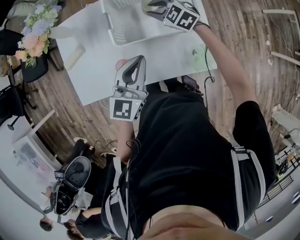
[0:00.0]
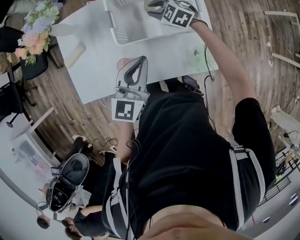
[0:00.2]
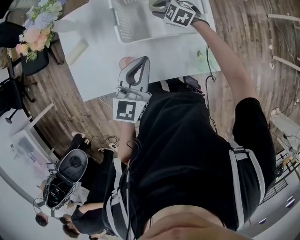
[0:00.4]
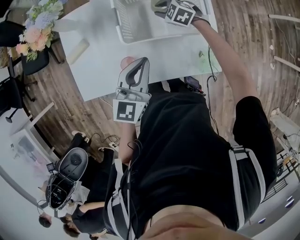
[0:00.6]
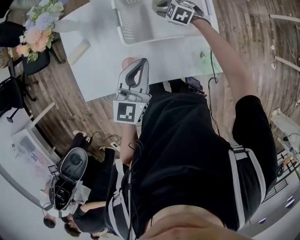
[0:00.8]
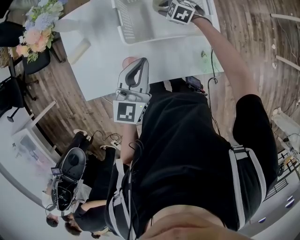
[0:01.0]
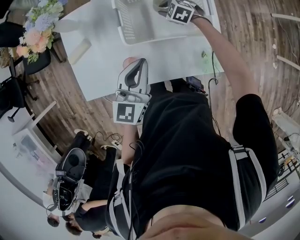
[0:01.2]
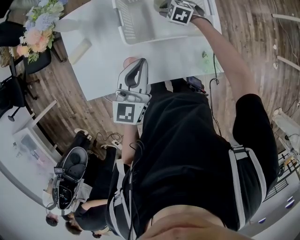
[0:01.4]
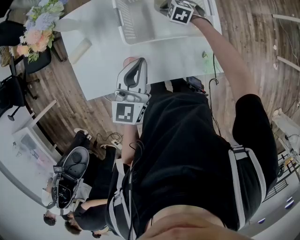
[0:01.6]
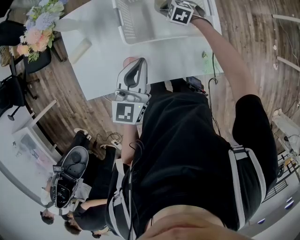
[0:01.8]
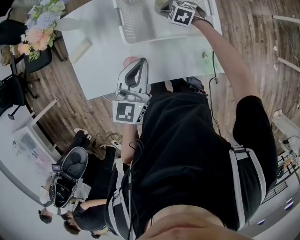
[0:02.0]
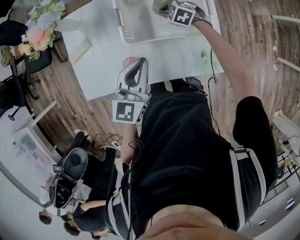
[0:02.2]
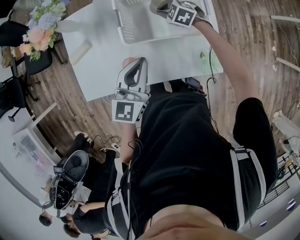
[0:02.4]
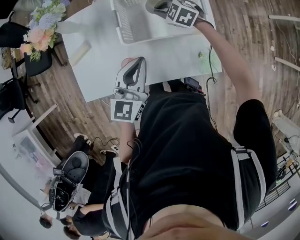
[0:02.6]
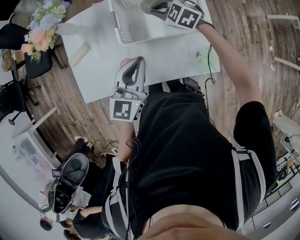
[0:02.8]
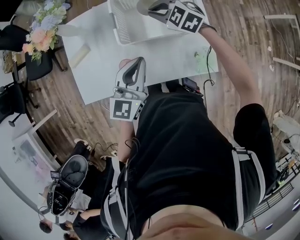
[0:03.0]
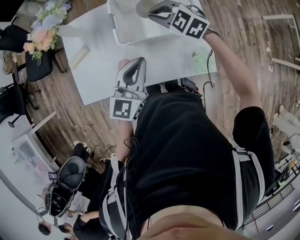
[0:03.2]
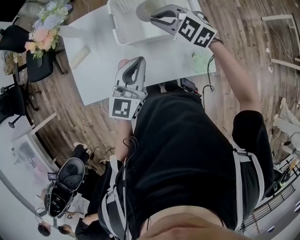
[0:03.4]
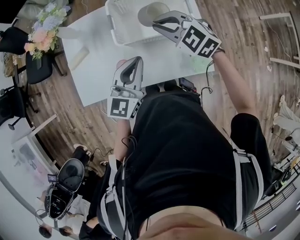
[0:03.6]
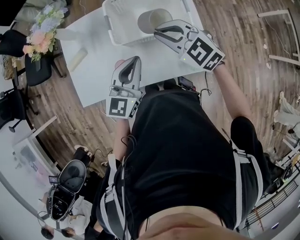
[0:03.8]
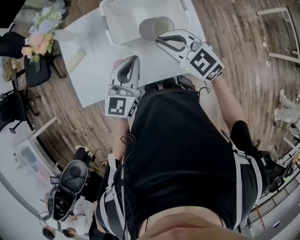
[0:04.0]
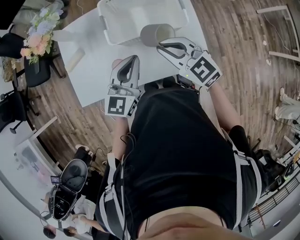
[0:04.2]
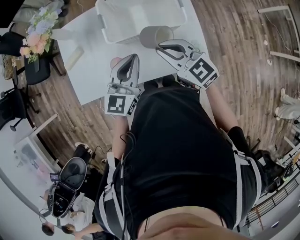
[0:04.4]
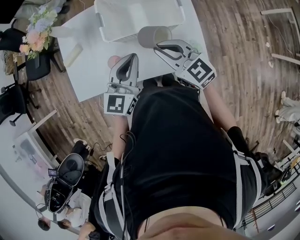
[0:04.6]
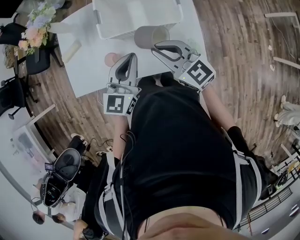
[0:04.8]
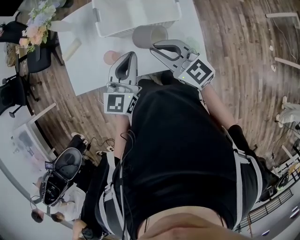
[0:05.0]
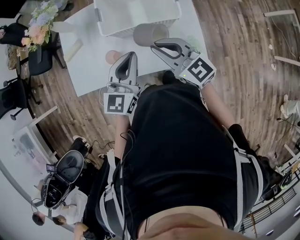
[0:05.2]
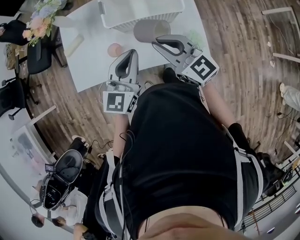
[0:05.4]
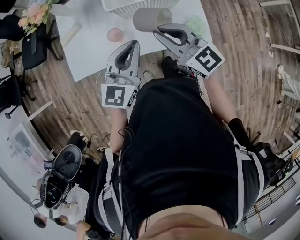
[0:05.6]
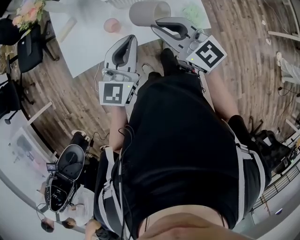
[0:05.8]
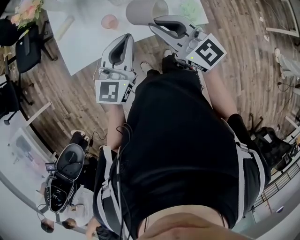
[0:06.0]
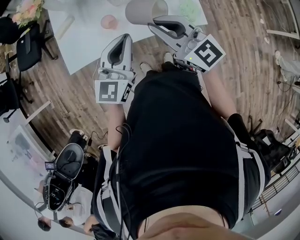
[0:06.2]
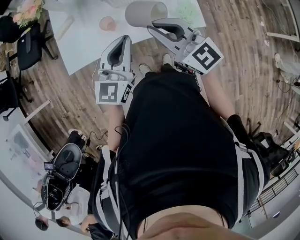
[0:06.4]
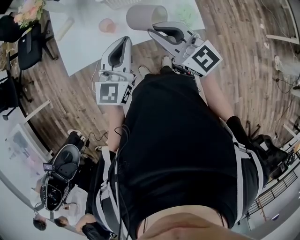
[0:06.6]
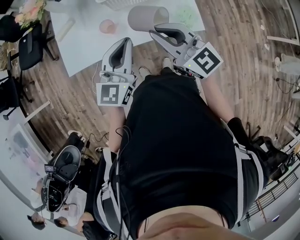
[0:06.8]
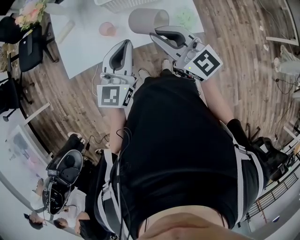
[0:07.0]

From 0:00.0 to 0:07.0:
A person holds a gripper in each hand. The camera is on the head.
From 0:00.0 to 0:01.4: The right gripper heads downward, covering about 15 cm.
From 0:01.4 to 0:02.8: The right gripper travels upward by some 15 cm.
From 0:02.8 to 0:04.2: The right gripper moves backward and upward, some 25 cm, and turns by about 30 degrees.
From 0:04.2 to 0:05.6: The two grippers go some 10 cm backward.
From 0:05.6 to 0:07.0: The grippers both shift backward by about 5 cm.

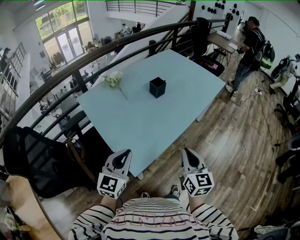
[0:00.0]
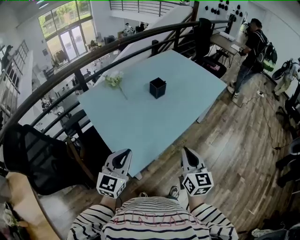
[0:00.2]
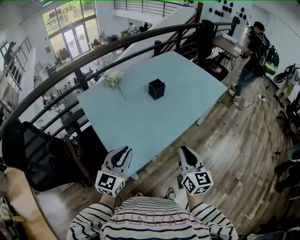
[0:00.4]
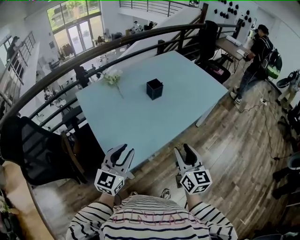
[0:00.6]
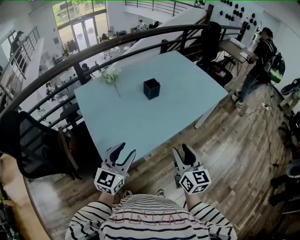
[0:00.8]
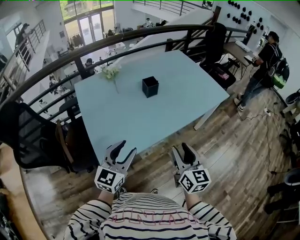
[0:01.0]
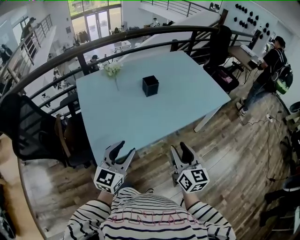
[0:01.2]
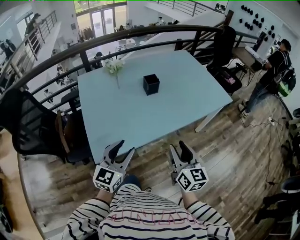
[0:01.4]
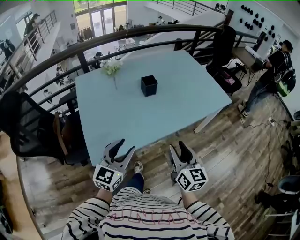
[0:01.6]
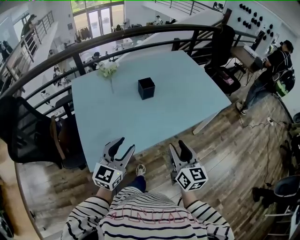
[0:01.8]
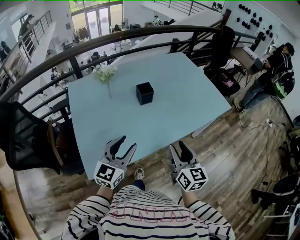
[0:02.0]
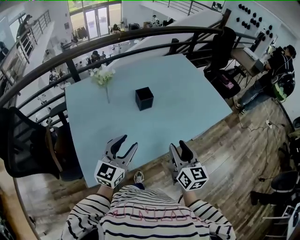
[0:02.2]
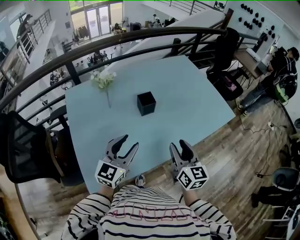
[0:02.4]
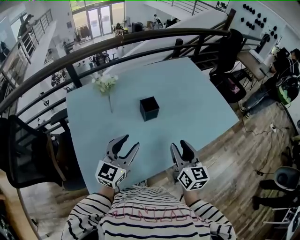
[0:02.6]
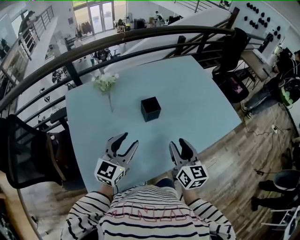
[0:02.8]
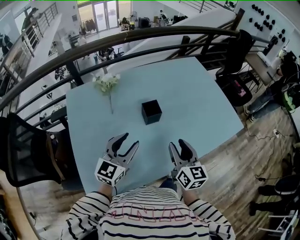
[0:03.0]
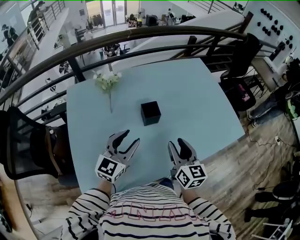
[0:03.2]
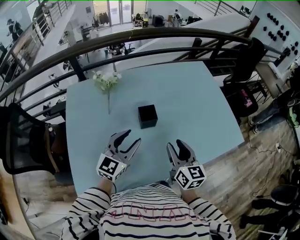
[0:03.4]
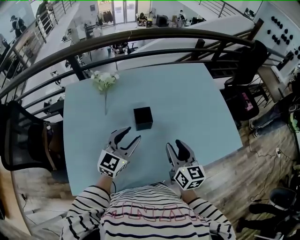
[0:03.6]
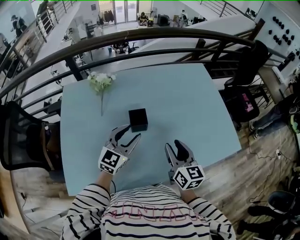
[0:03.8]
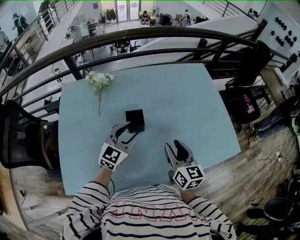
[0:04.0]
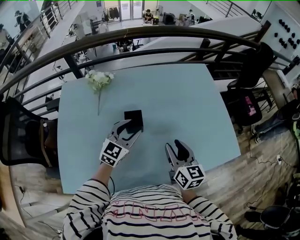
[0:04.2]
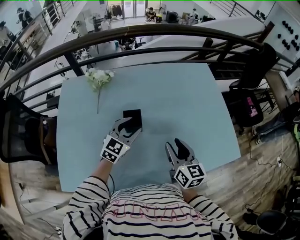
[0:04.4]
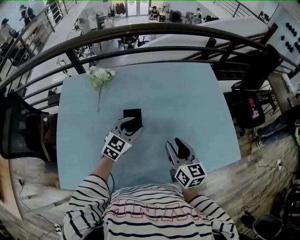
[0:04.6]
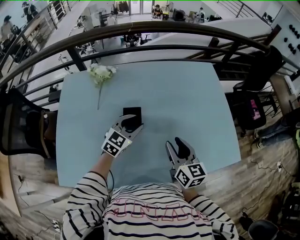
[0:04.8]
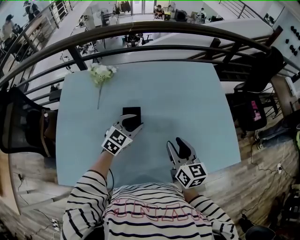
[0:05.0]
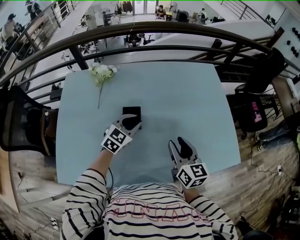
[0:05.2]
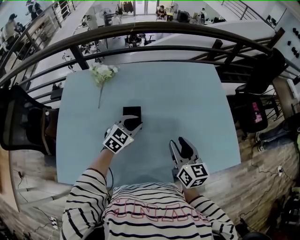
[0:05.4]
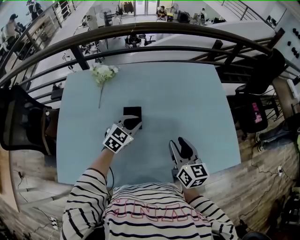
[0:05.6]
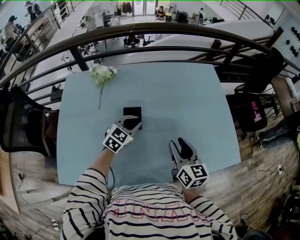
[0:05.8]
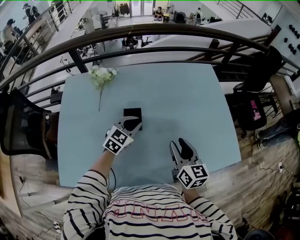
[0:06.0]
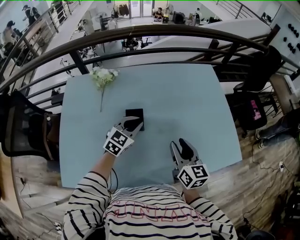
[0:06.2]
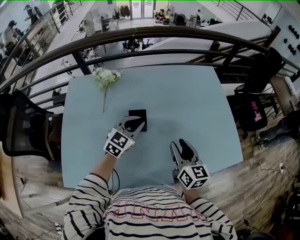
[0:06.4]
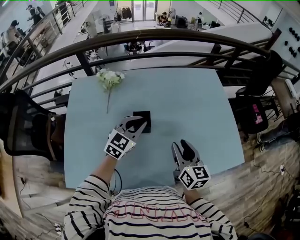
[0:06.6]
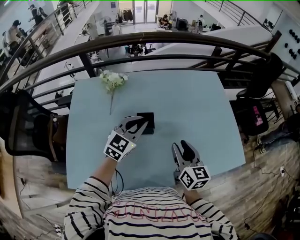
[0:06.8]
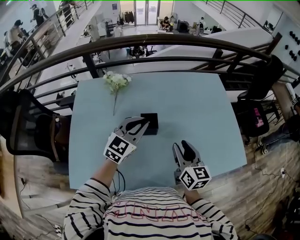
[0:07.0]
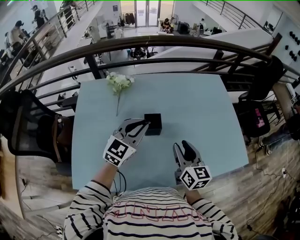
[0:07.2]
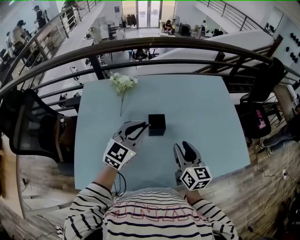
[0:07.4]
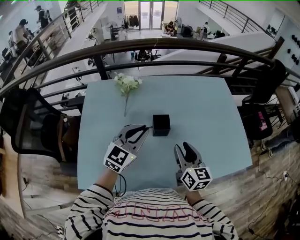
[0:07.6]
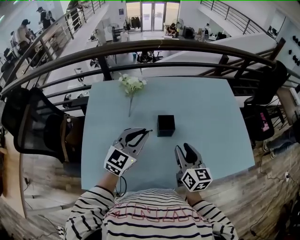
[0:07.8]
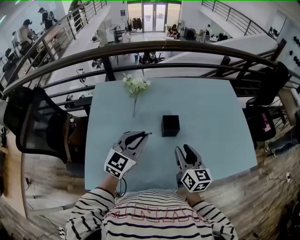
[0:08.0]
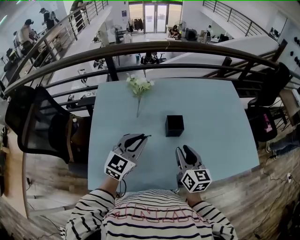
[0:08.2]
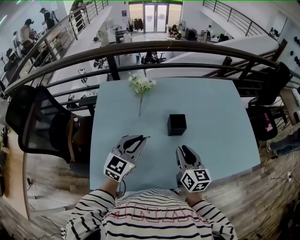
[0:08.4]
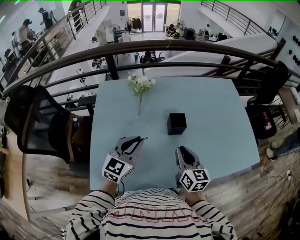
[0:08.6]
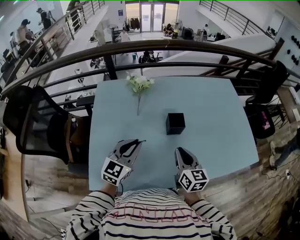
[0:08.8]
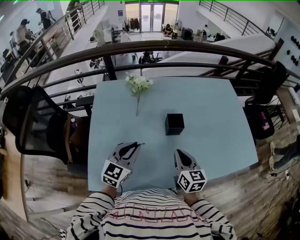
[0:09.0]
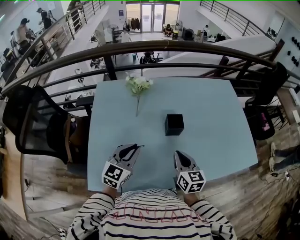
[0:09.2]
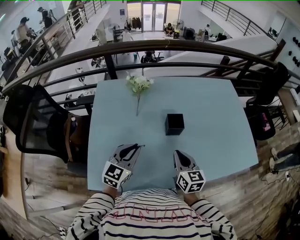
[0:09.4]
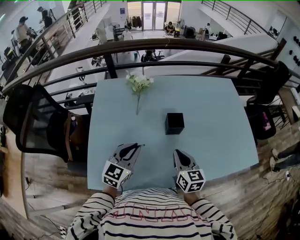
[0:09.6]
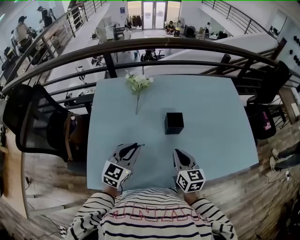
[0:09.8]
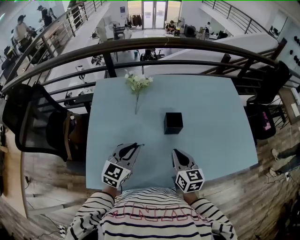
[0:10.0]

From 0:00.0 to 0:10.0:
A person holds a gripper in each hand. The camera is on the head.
From 0:00.0 to 0:01.4: The left gripper shifts approximately 20 cm to the right, and opens. Meanwhile the right gripper moves to the right and forward, approximately 20 cm, changes its angle by some 20 degrees, and opens.
From 0:01.4 to 0:02.8: Both grippers move forward, roughly 30 cm.
From 0:02.8 to 0:04.2: Both grippers travel together forward and to the right, some 20 cm.
From 0:04.2 to 0:05.8: The left gripper goes roughly 5 cm downward, and closes up.
From 0:05.8 to 0:07.2: The left gripper moves upward, to the left and backward, approximately 15 cm, while the right gripper travels to the left by roughly 10 cm.
From 0:07.2 to 0:08.6: The grippers both shift to the left and backward by approximately 15 cm. The right gripper closes up.
From 0:08.6 to 0:10.0: The grippers stay close to where they were, moving slightly.

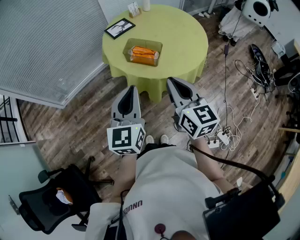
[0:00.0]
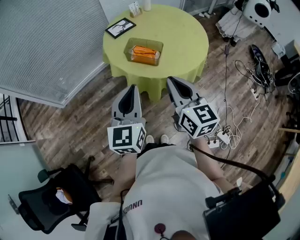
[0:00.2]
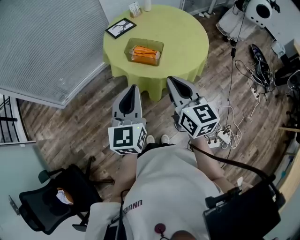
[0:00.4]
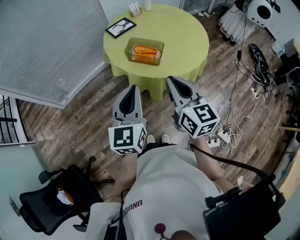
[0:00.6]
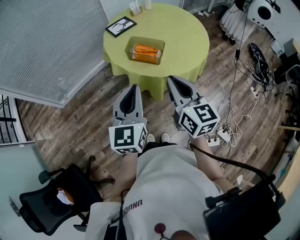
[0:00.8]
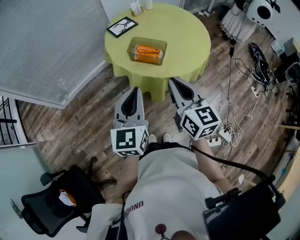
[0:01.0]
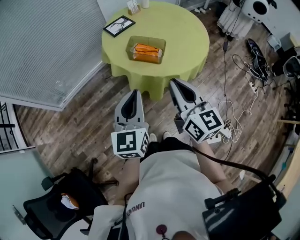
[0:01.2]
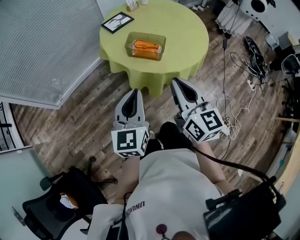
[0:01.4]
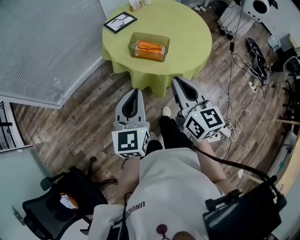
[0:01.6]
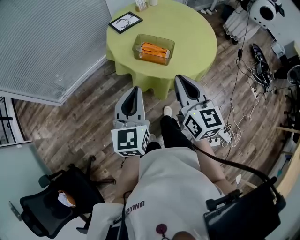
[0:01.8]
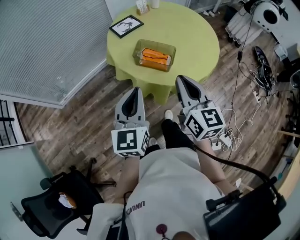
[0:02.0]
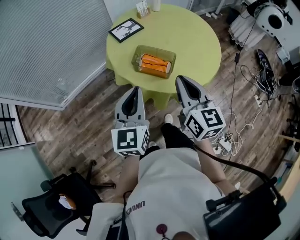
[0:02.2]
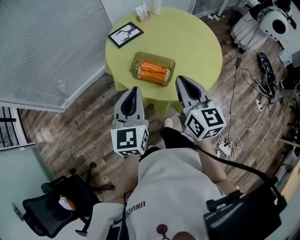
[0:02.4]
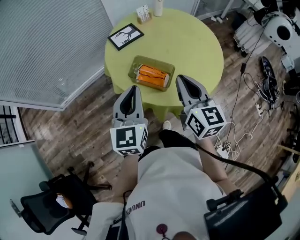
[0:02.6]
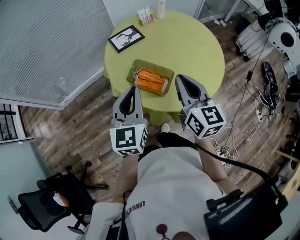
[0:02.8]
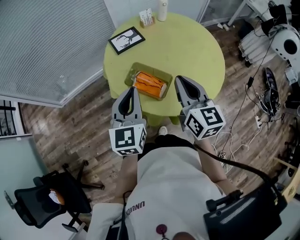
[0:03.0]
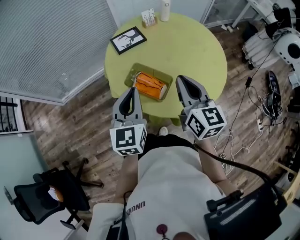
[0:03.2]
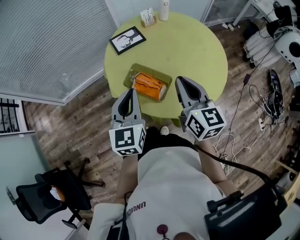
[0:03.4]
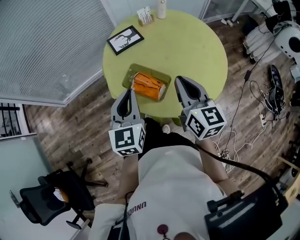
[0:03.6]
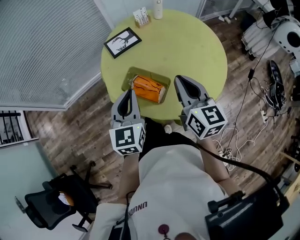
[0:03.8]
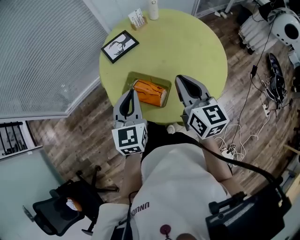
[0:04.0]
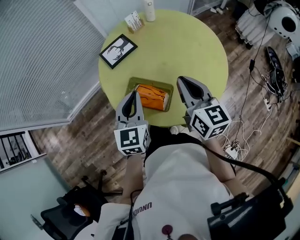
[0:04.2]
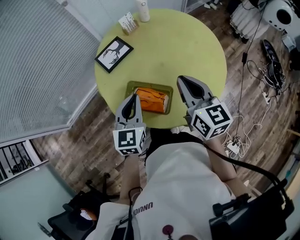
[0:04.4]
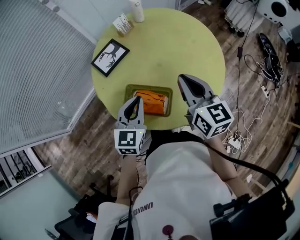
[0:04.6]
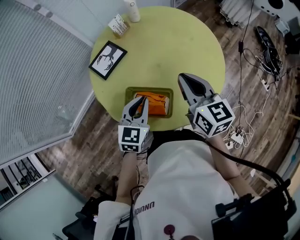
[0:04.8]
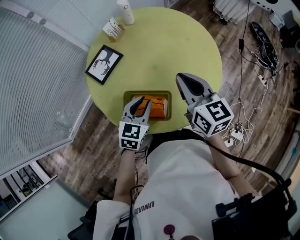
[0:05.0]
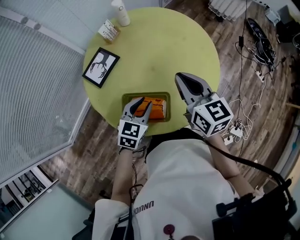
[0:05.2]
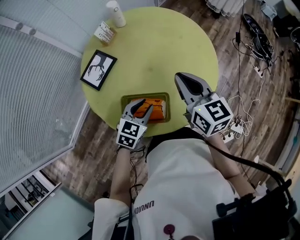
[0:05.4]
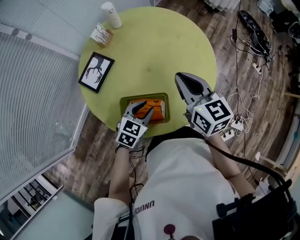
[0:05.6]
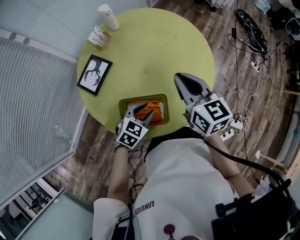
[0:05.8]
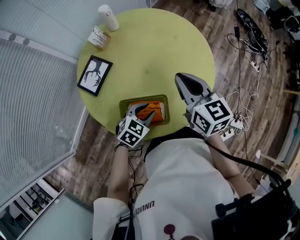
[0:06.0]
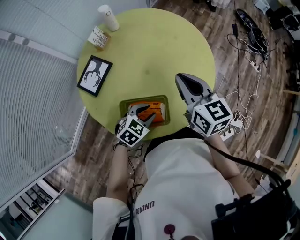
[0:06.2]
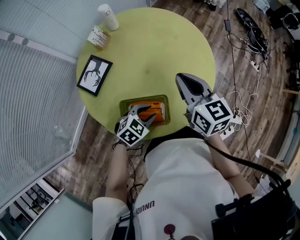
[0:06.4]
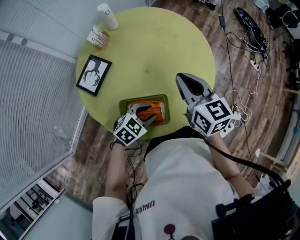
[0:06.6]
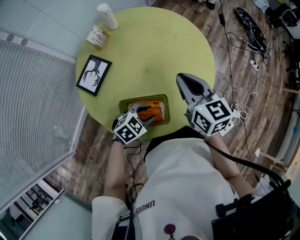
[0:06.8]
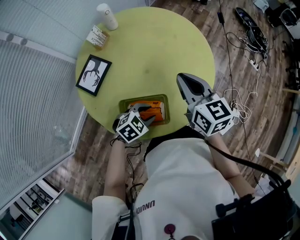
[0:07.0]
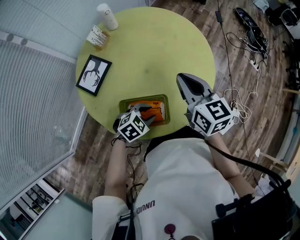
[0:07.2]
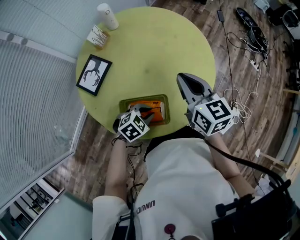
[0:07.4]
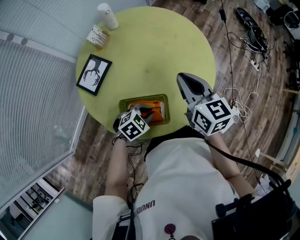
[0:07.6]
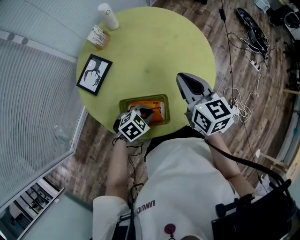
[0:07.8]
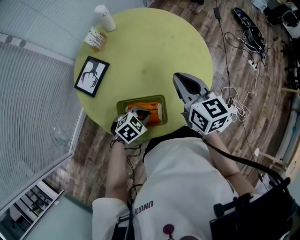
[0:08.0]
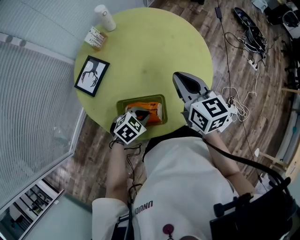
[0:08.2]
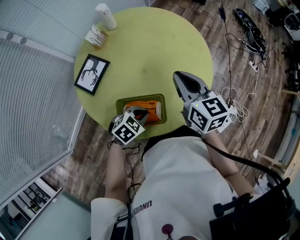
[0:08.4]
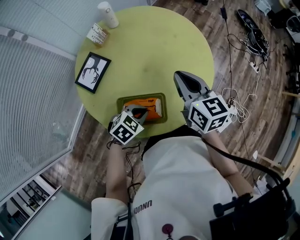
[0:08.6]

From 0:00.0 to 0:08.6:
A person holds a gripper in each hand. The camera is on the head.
From 0:00.0 to 0:01.4: The grippers move only a little.
From 0:01.4 to 0:02.8: Both grippers move forward, some 20 cm.
From 0:02.8 to 0:04.4: The right gripper travels forward by about 10 cm; the left gripper heads forward and downward, covering about 10 cm.
From 0:04.4 to 0:05.8: The right gripper shifts by approximately 5 cm, while the left gripper goes about 15 cm downward, swivels some 60 degrees, and opens its fingers.
From 0:05.8 to 0:07.2: The left gripper rotates about 20 degrees.
From 0:07.2 to 0:08.6: The left gripper closes its fingers.
